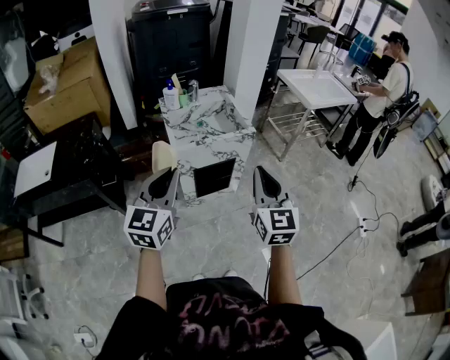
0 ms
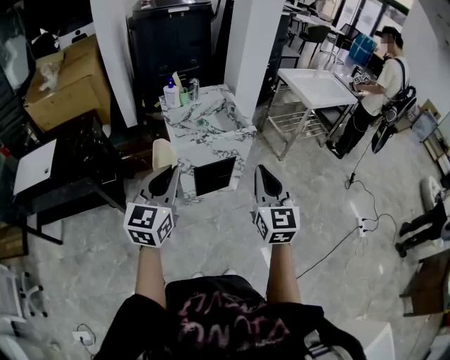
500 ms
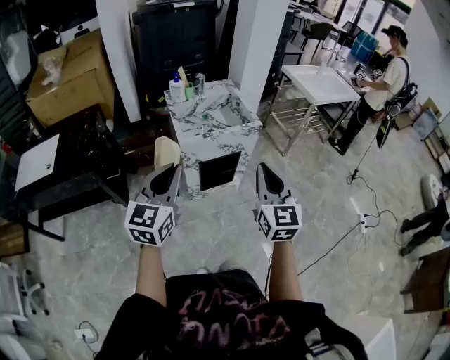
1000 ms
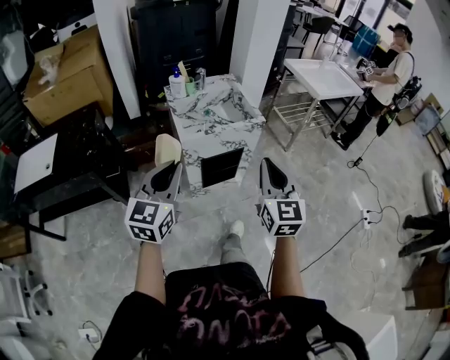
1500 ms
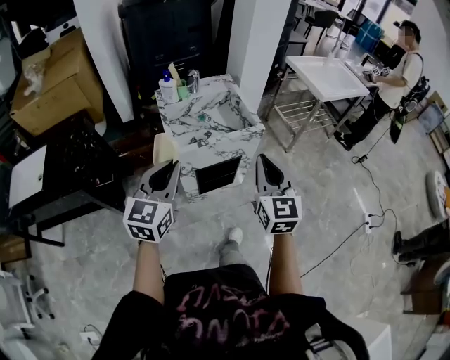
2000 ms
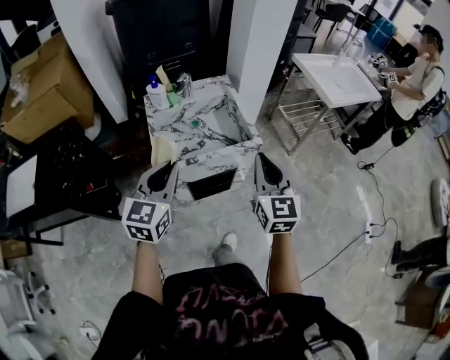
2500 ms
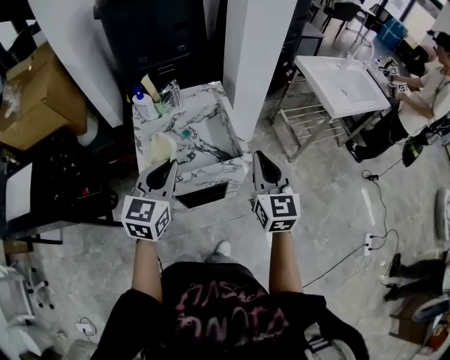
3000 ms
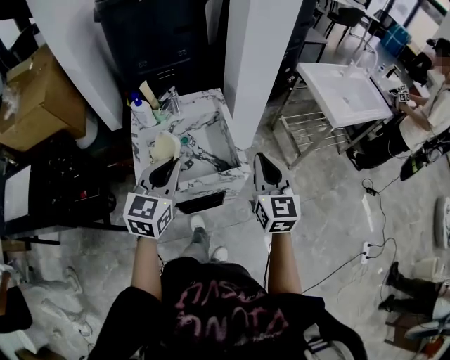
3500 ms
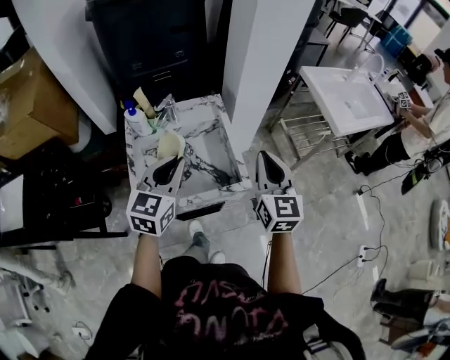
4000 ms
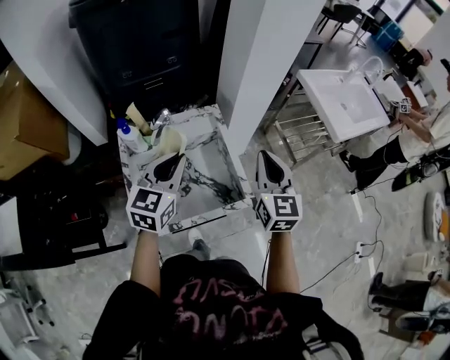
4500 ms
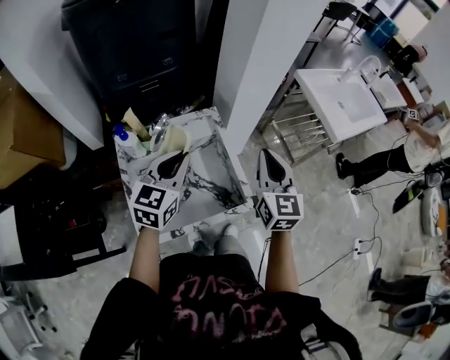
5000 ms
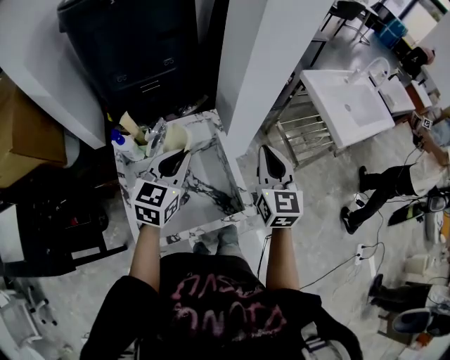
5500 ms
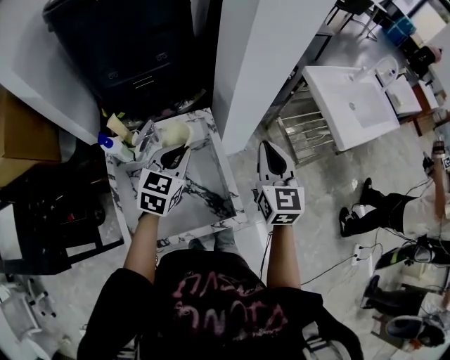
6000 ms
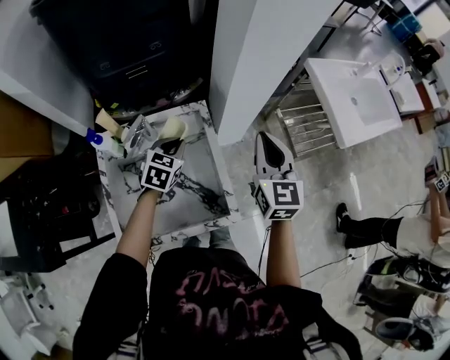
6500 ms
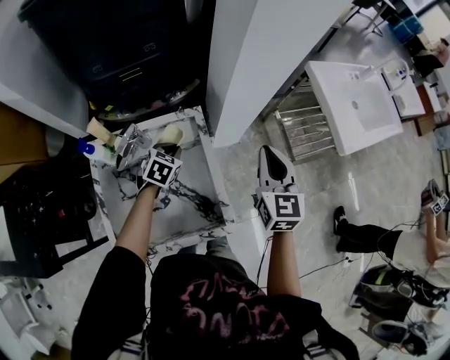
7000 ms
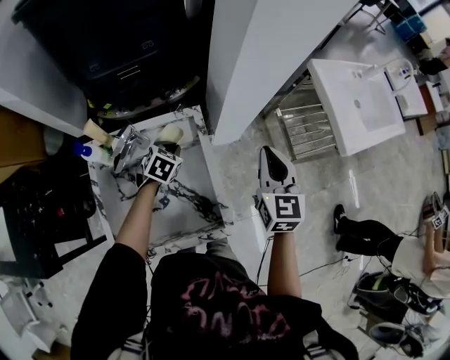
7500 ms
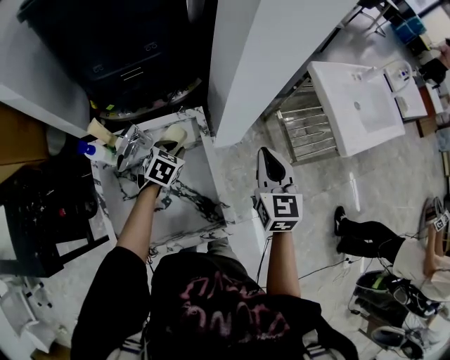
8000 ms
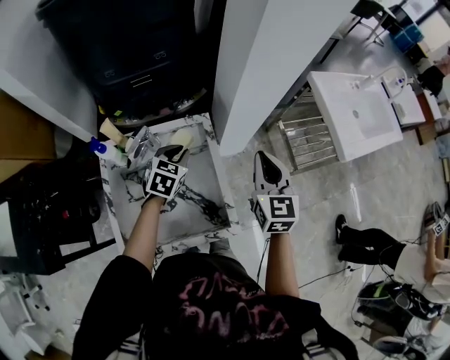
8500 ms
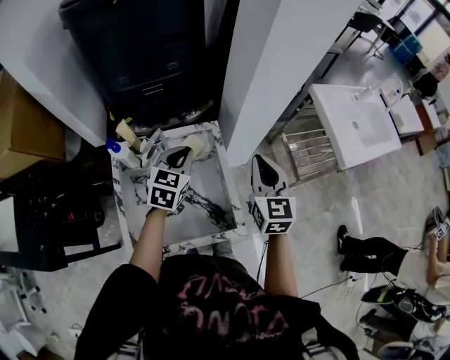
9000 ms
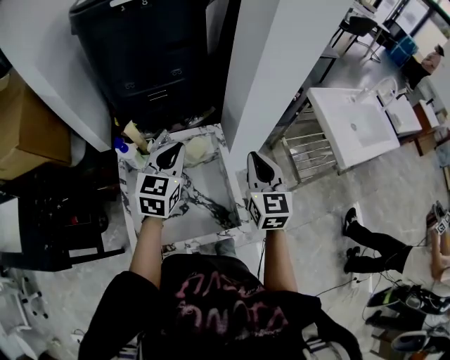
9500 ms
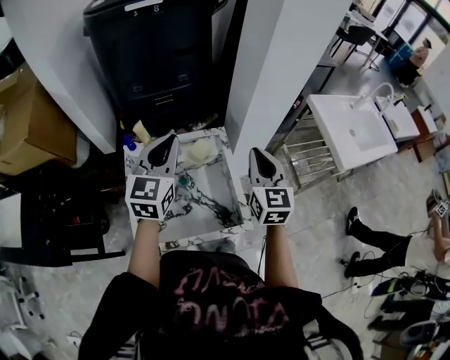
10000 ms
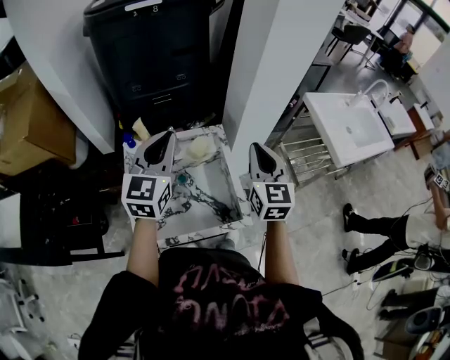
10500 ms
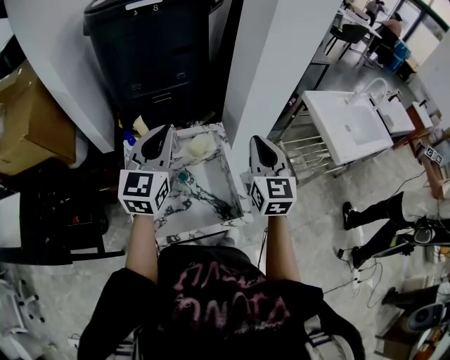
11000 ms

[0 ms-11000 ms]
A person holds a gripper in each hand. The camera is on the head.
0 ms to 2000 ms: The grippers both shift forward by some 10 cm.
2000 ms to 3500 ms: The right gripper goes approximately 30 cm forward; the left gripper heads forward and to the right, covering some 30 cm.
3500 ms to 5500 ms: Both grippers move forward, approximately 20 cm.
5500 ms to 7500 ms: The left gripper shifts some 30 cm downward and forward, and angles its fingers downward, by approximately 40 degrees. The right gripper travels forward and downward by some 15 cm.
7500 ms to 9000 ms: The right gripper goes some 10 cm to the left and backward. Meanwhile the left gripper goes some 20 cm upward, and changes its angle by about 30 degrees.
9000 ms to 11000 ms: The left gripper travels upward and backward by approximately 20 cm, and turns by roughly 30 degrees. The right gripper goes some 10 cm upward.

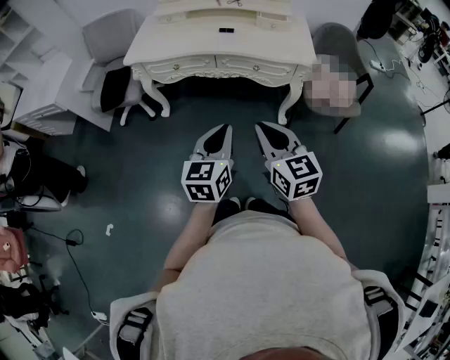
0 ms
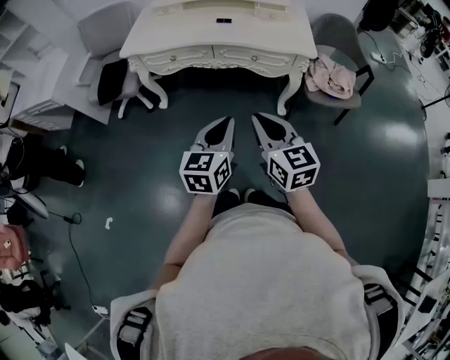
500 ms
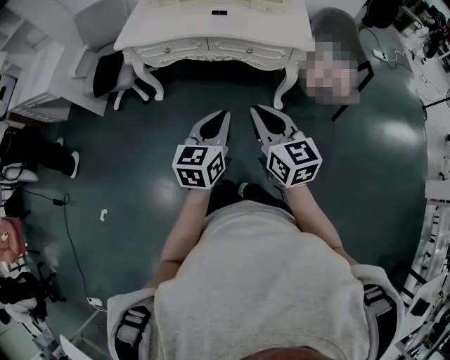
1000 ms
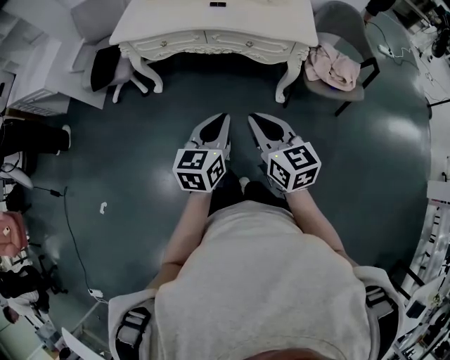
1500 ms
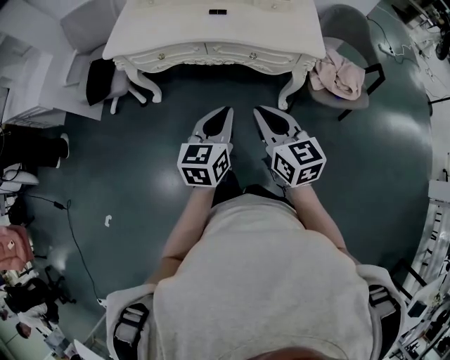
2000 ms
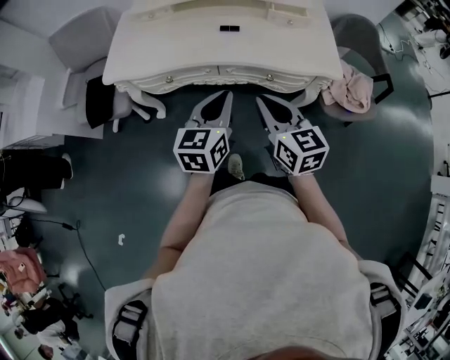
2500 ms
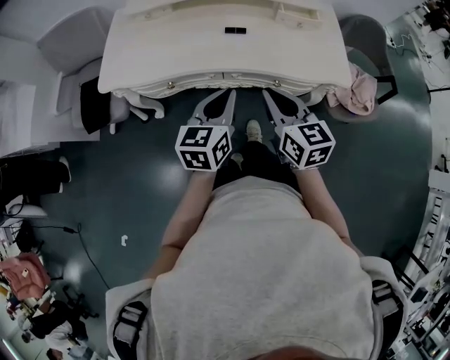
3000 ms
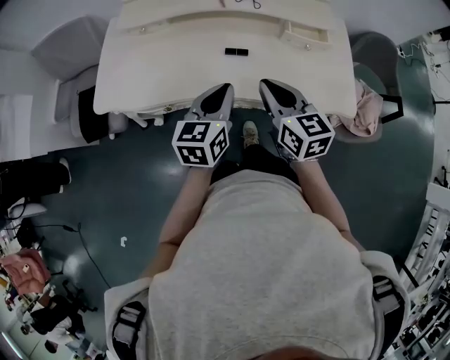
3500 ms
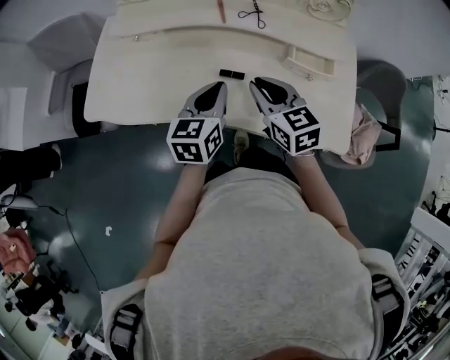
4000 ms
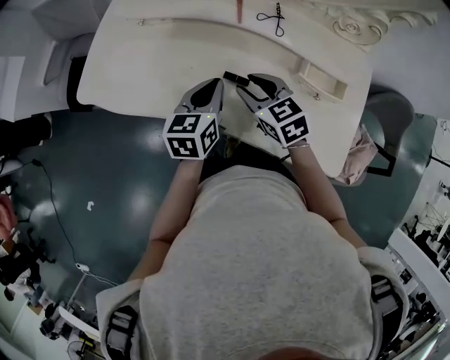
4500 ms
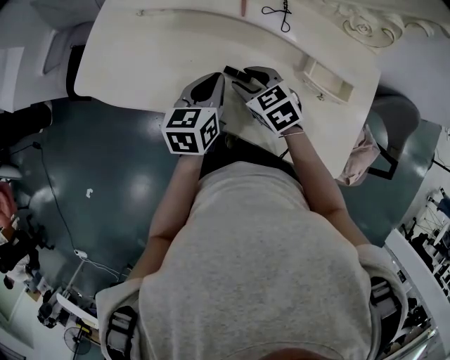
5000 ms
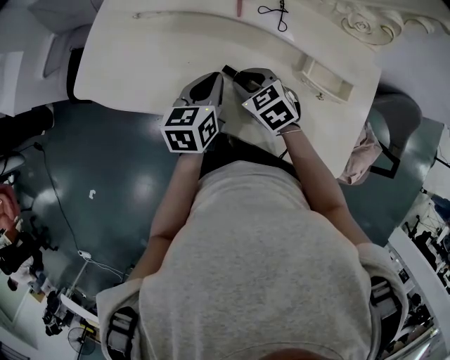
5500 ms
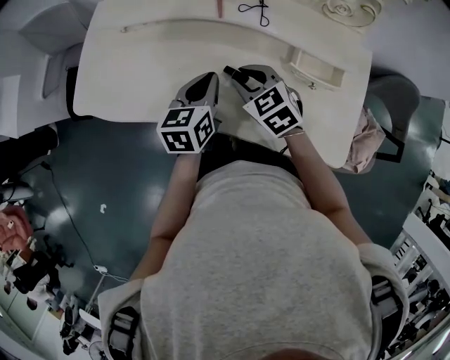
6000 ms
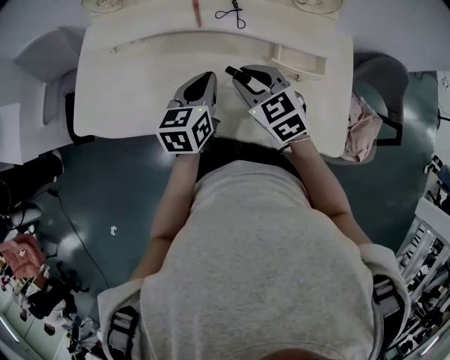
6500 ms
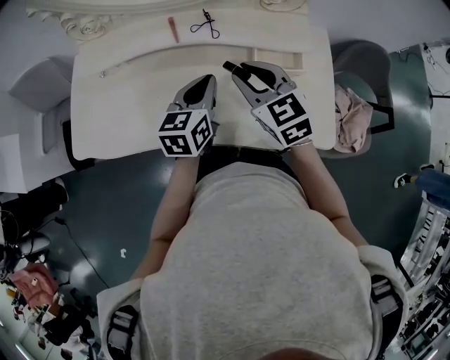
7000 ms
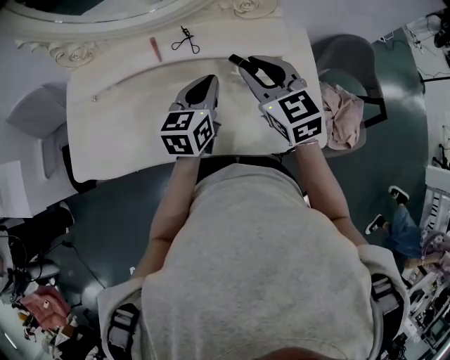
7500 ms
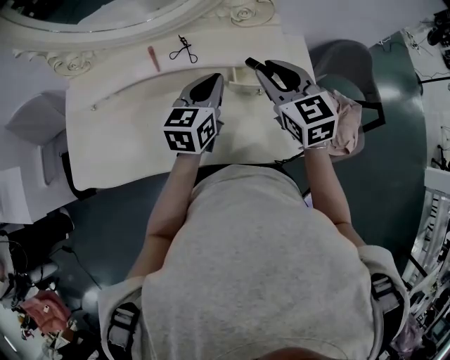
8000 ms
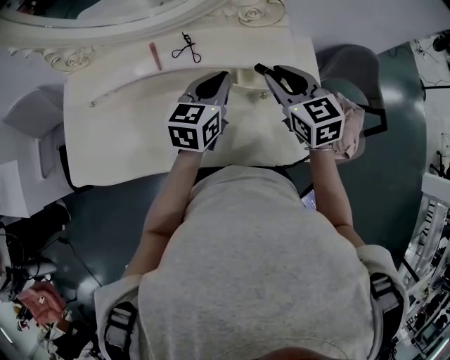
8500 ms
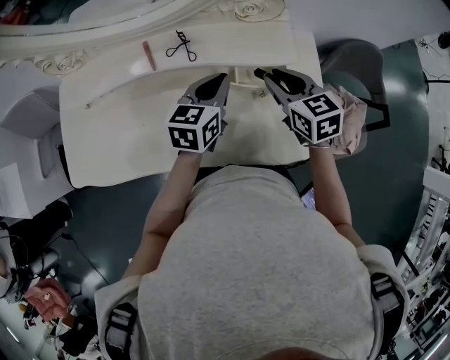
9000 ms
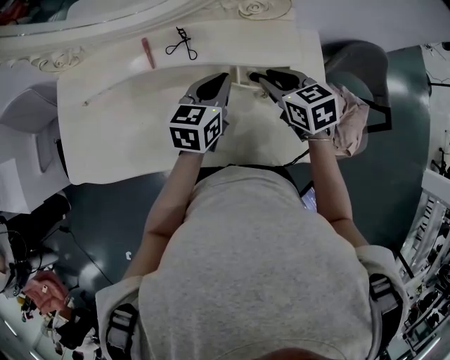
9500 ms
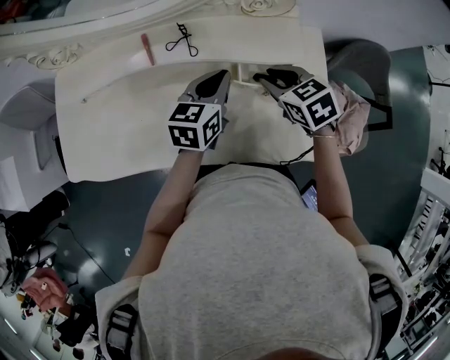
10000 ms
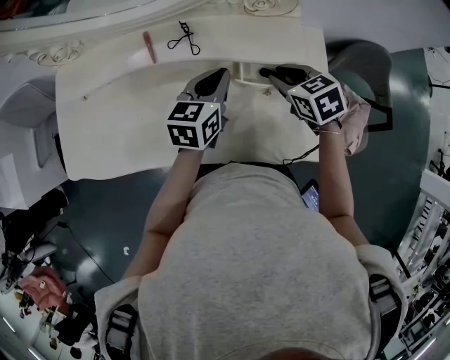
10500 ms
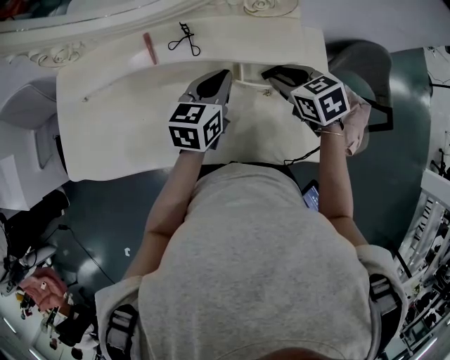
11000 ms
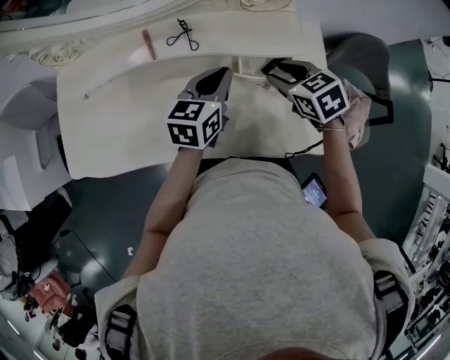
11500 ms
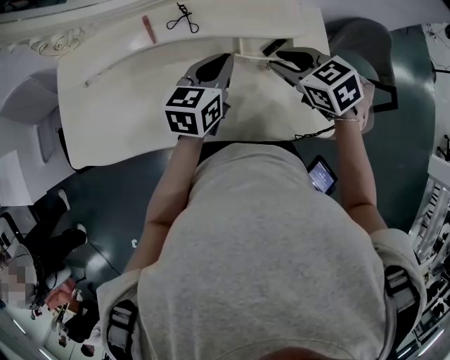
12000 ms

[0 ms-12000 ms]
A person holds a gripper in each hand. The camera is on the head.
0 ms to 2000 ms: Both grippers travel together forward, some 10 cm.
2000 ms to 4000 ms: The two grippers travel together, forward, roughly 50 cm.
4000 ms to 6000 ms: The left gripper is displaced downward by approximately 5 cm. Meanwhile the right gripper moves downward and forward, some 10 cm, rotates about 30 degrees, and opens.
6000 ms to 8000 ms: The right gripper ends up about 25 cm from where it was, and rotates some 40 degrees. The left gripper moves some 20 cm, and rotates about 30 degrees.
8000 ms to 10000 ms: The left gripper is displaced downward by roughly 5 cm, while the right gripper shifts roughly 10 cm downward, and turns by roughly 30 degrees.
10000 ms to 12000 ms: The right gripper changes place by about 5 cm.

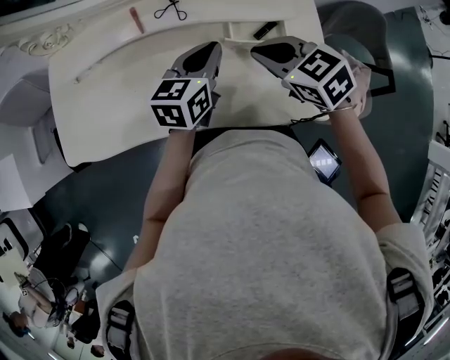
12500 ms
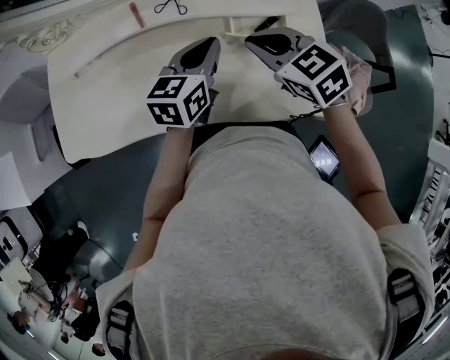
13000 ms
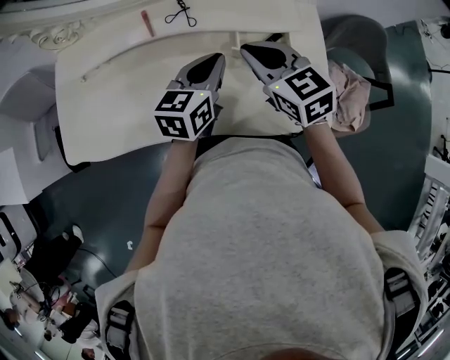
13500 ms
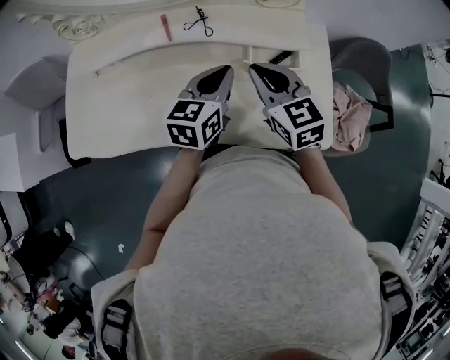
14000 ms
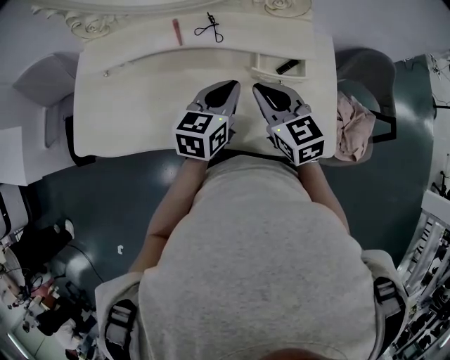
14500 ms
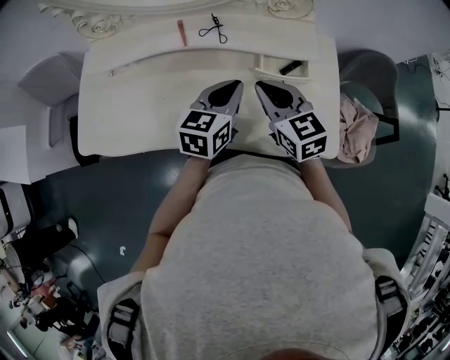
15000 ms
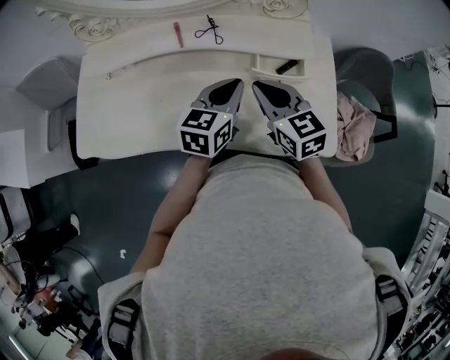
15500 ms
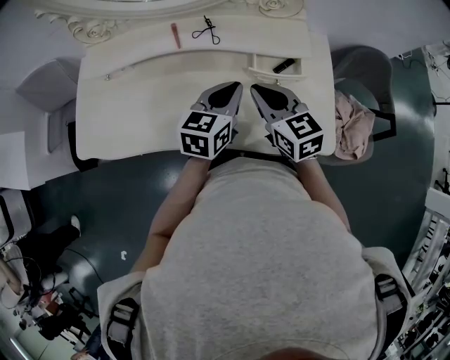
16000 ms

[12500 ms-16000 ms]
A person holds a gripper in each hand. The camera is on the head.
12500 ms to 14500 ms: The right gripper turns by some 20 degrees.
14500 ms to 16000 ms: Both grippers stay put.
